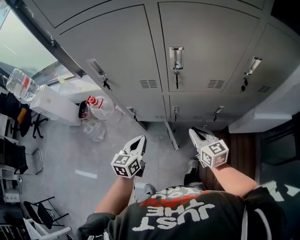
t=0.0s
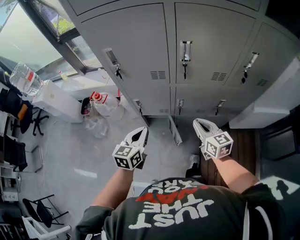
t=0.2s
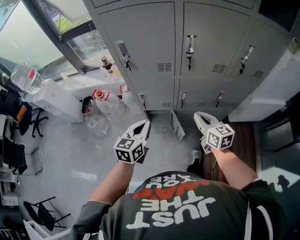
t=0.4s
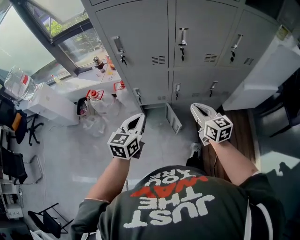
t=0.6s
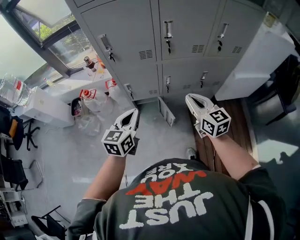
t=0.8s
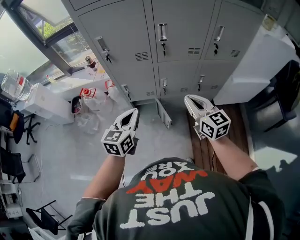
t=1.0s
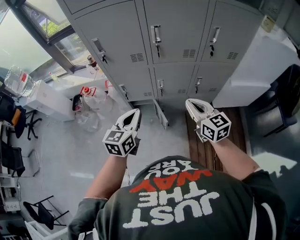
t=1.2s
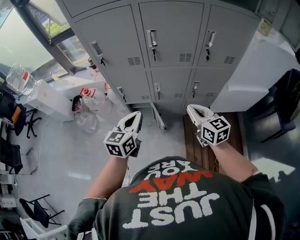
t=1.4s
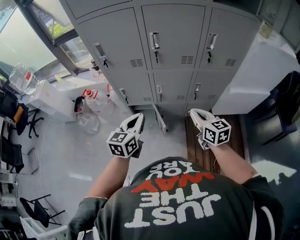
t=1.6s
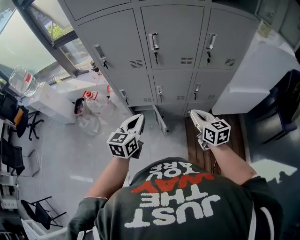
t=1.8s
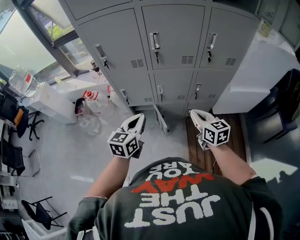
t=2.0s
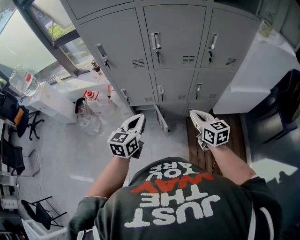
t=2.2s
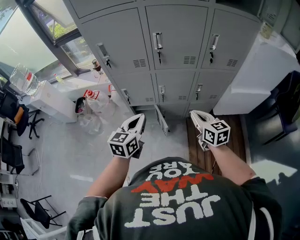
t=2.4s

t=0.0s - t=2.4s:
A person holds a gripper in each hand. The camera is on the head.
t=0.0s - t=1.2s: The right gripper travels backward and upward by roughly 20 cm, while the left gripper heads upward and backward, covering approximately 20 cm.
t=1.2s - t=2.4s: The right gripper moves downward, about 5 cm.

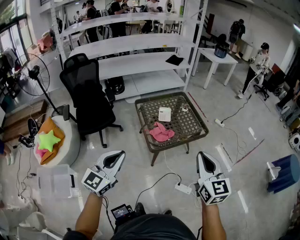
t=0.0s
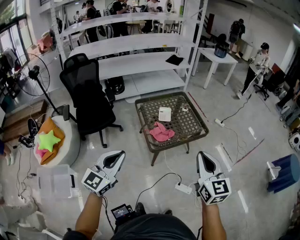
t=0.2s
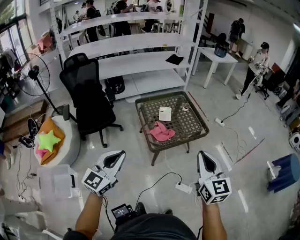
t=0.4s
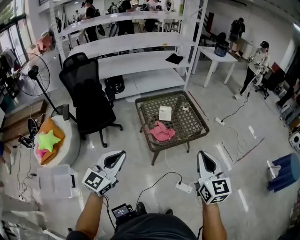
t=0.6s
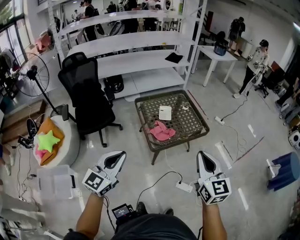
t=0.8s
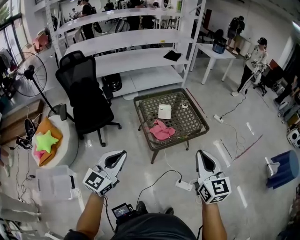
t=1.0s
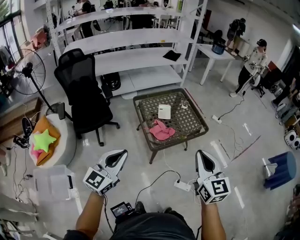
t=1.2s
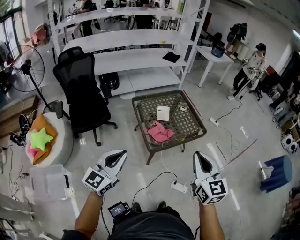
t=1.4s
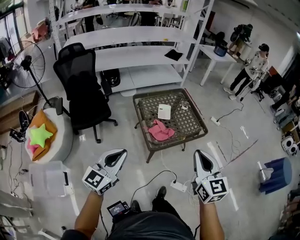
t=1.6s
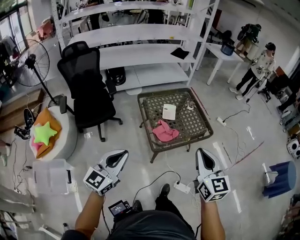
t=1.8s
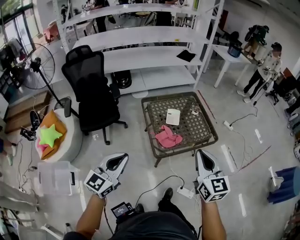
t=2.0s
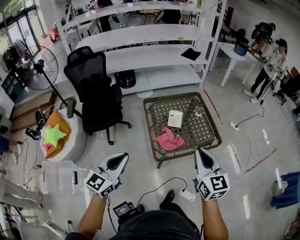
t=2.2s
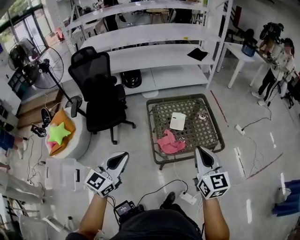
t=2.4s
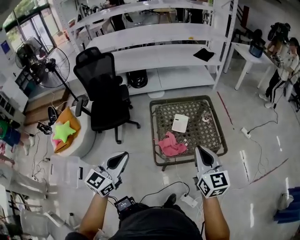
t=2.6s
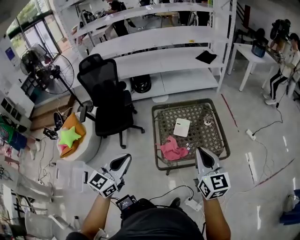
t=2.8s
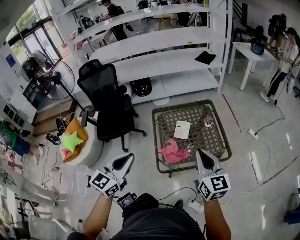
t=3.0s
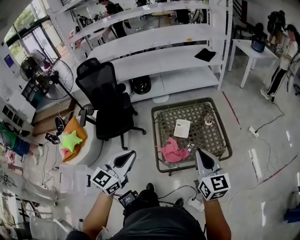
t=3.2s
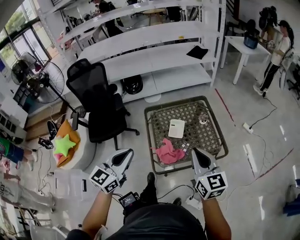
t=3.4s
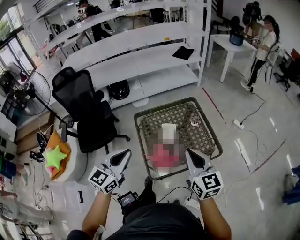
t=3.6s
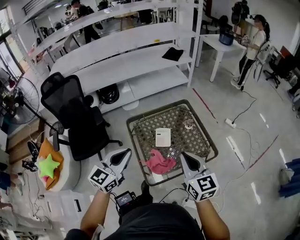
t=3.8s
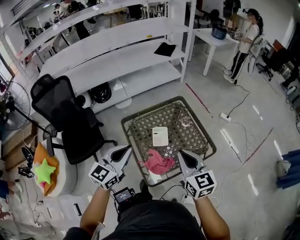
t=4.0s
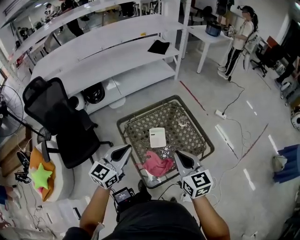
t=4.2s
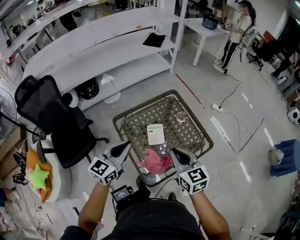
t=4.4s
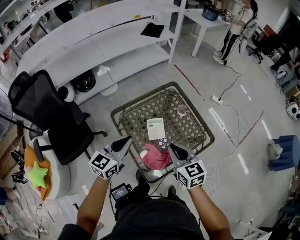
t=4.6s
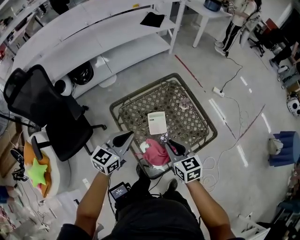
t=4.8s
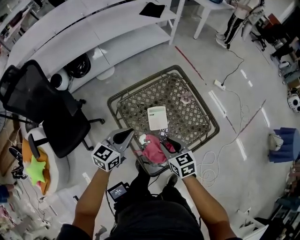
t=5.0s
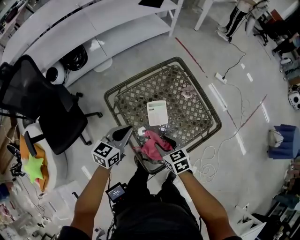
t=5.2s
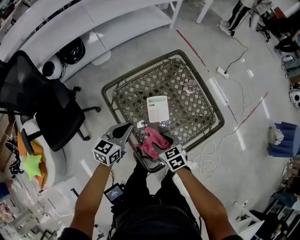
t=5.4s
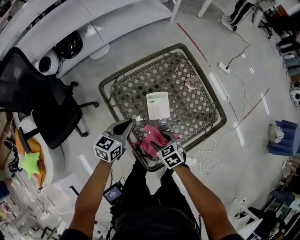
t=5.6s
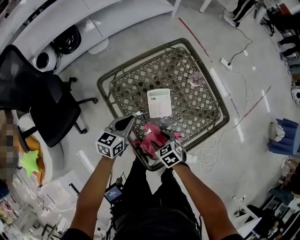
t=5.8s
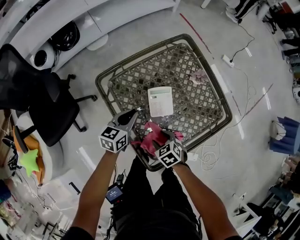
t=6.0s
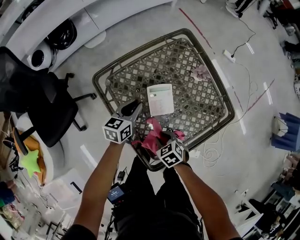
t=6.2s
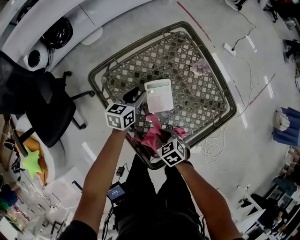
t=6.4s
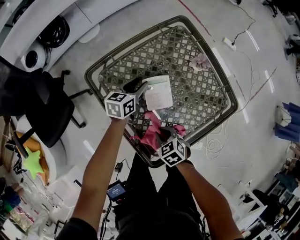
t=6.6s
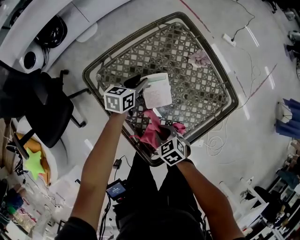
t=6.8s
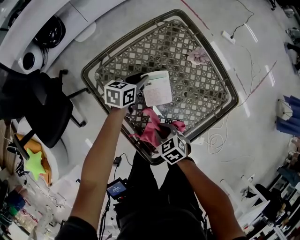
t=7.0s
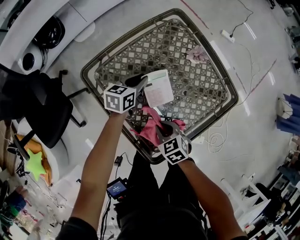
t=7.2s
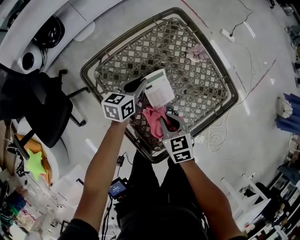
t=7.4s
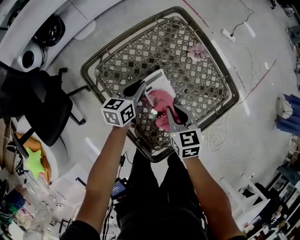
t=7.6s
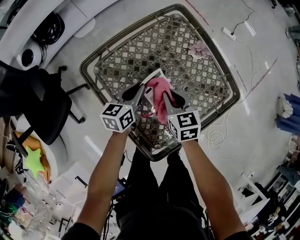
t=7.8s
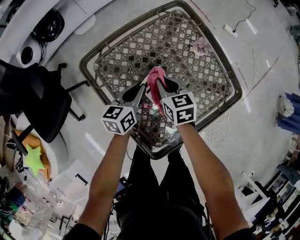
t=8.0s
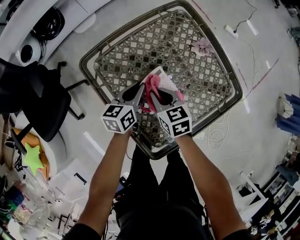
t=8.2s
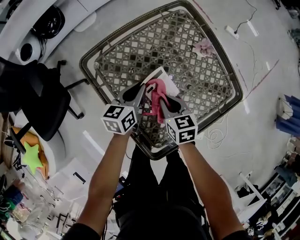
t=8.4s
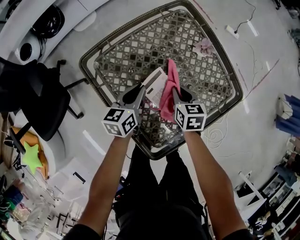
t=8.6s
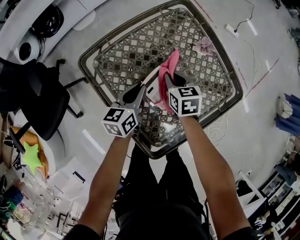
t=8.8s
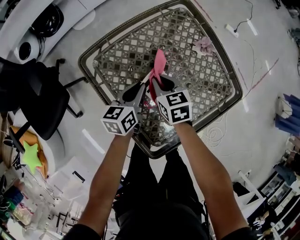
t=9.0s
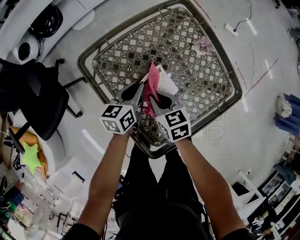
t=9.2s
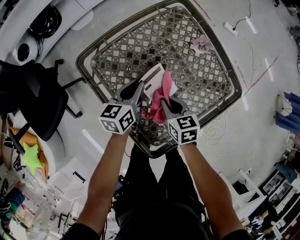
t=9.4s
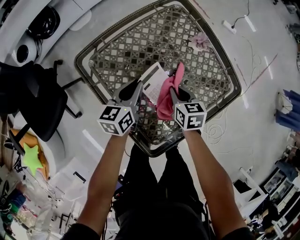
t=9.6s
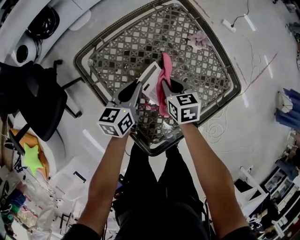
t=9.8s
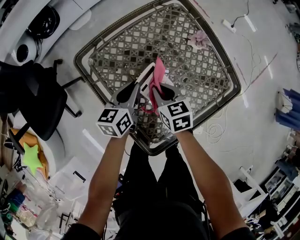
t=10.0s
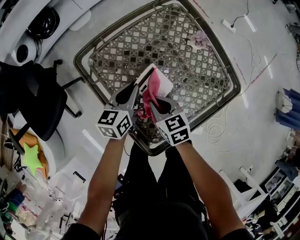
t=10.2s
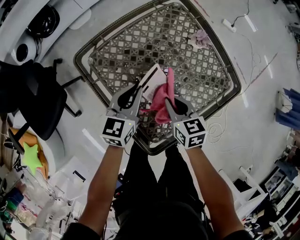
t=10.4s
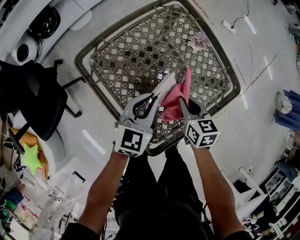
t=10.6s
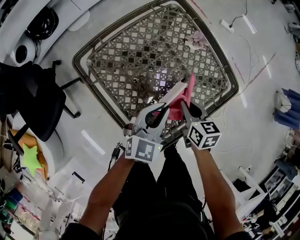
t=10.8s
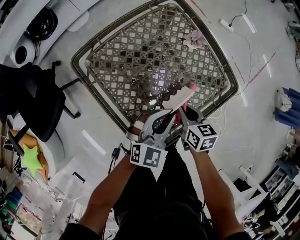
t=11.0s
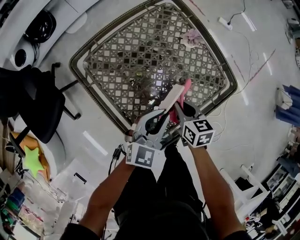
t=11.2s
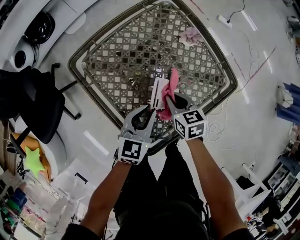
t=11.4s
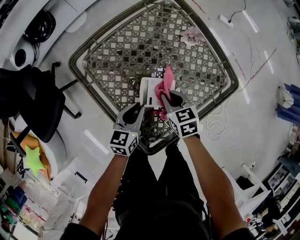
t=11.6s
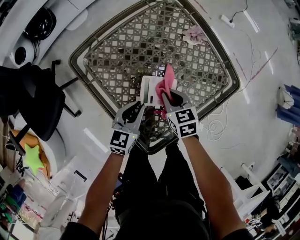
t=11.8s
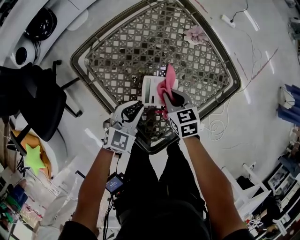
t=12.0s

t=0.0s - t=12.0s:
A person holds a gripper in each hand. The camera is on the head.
t=0.0s - t=1.6s: The left gripper shifts by some 5 cm. The right gripper is displaced to the left by some 5 cm.
t=1.6s - t=3.0s: The grippers both shift forward and to the right by some 25 cm. The right gripper rotates some 20 degrees.
t=3.0s - t=4.4s: The right gripper travels forward, to the left and downward by about 20 cm; the left gripper shifts about 30 cm forward and downward, and swivels roughly 30 degrees.
t=4.4s - t=6.0s: Both grippers travel together downward, about 35 cm. The left gripper rotates roughly 30 degrees. Meanwhile the right gripper tips its fingers downward by approximately 40 degrees, and opens up.
t=6.0s - t=7.6s: The right gripper travels forward, upward and to the right by approximately 15 cm, turns by approximately 40 degrees, and closes; the left gripper heads to the right and forward, covering approximately 10 cm, and opens and closes again.
t=7.6s - t=9.0s: The right gripper moves forward and backward over approximately 10 cm, changing direction 2 times.
t=9.0s - t=10.4s: The right gripper swings left and right, approximately 10 cm each way, with 2 reversals. The left gripper goes some 5 cm upward, and swivels some 20 degrees.
t=10.4s - t=12.0s: The left gripper goes roughly 10 cm backward, moves about 15 cm to the right and comes back, and rotates some 30 degrees.

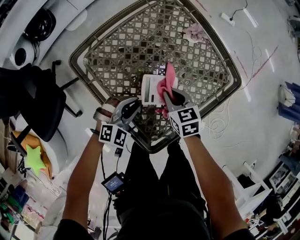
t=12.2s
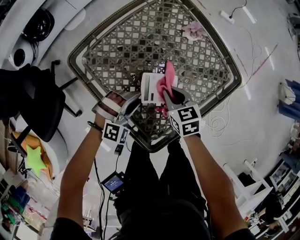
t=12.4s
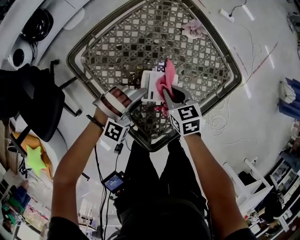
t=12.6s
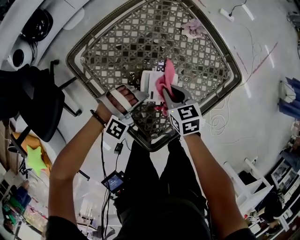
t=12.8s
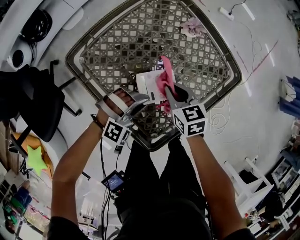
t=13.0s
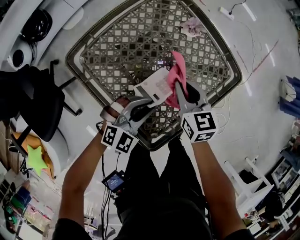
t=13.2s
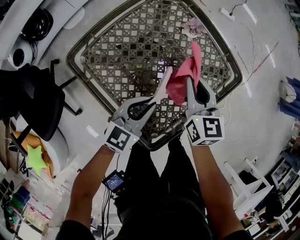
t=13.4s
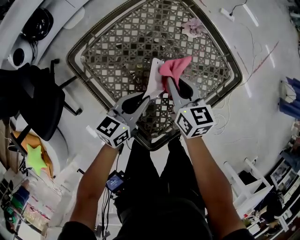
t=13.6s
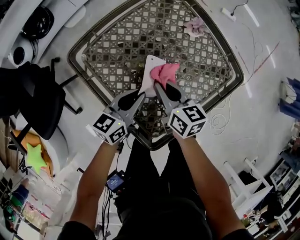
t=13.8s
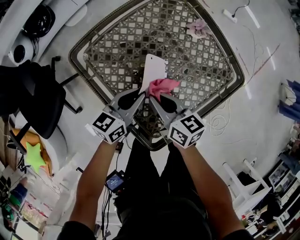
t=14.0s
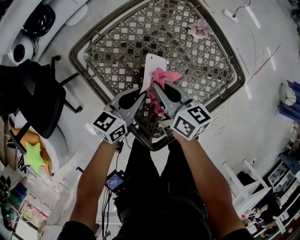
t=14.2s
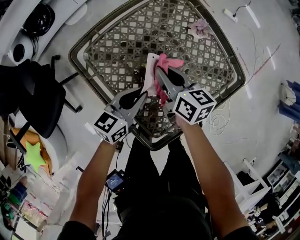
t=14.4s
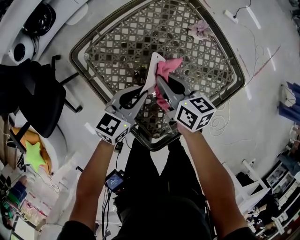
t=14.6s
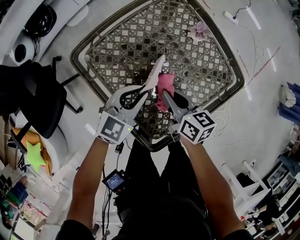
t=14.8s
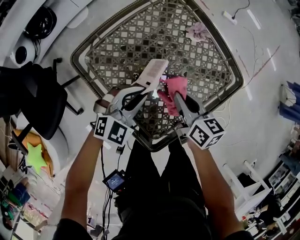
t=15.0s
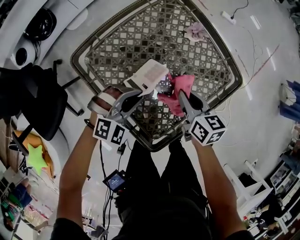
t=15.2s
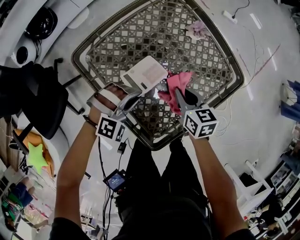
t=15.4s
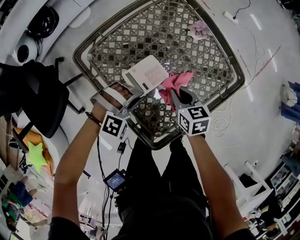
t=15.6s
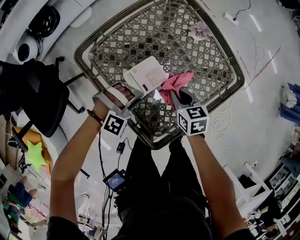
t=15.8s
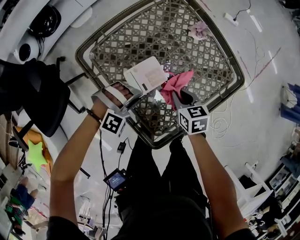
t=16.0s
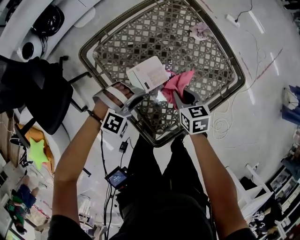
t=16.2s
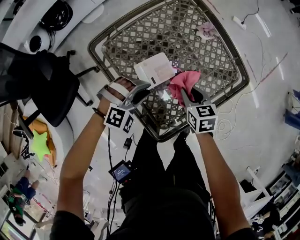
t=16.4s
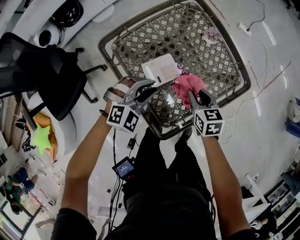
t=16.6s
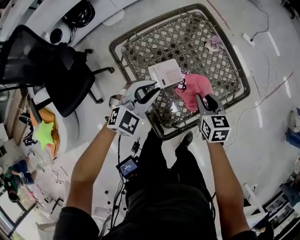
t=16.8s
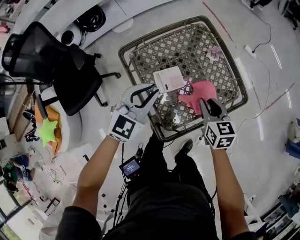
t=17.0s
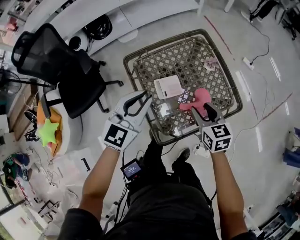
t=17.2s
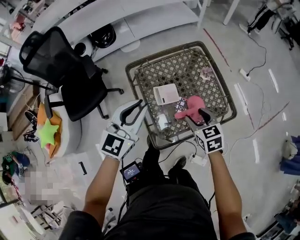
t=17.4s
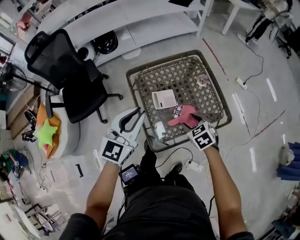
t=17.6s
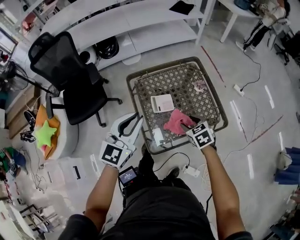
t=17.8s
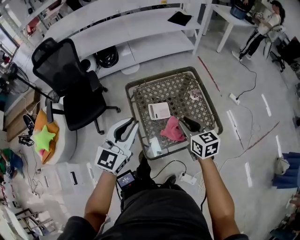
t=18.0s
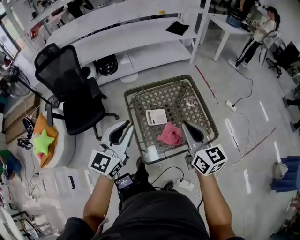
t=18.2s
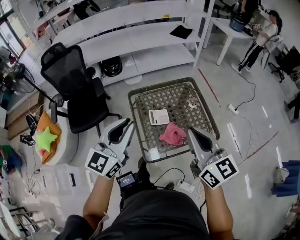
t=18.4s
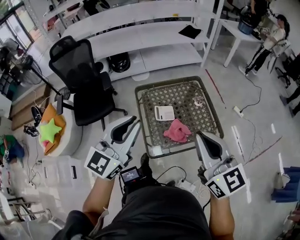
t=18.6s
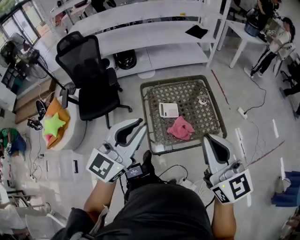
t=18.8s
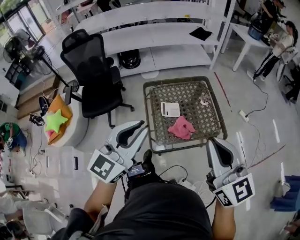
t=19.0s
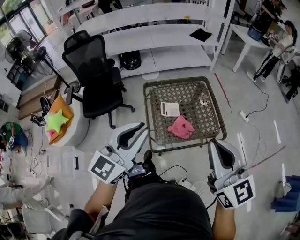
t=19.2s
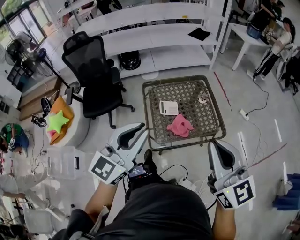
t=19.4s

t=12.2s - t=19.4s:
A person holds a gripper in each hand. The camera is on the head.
t=12.2s - t=13.6s: Both grippers travel together upward, some 5 cm. The left gripper rotates around the line of its fingers by roughly 60 degrees, counterclockwise from behind, and opens, then closes once more, while the right gripper turns by roughly 20 degrees.
t=13.6s - t=15.0s: The right gripper moves forward and backward over about 10 cm, changing direction 2 times. Meanwhile the left gripper rolls clockwise, seen from behind, by roughly 50 degrees.
t=15.0s - t=16.6s: The left gripper moves some 10 cm downward and comes back. Meanwhile the right gripper goes downward and returns, about 10 cm each way, and rotates about 30 degrees.
t=16.6s - t=18.0s: The two grippers go some 30 cm upward. The right gripper rotates about 30 degrees, and opens and closes again; the left gripper angles its fingers upward, by about 30 degrees.
t=18.0s - t=19.4s: The left gripper is displaced backward and upward by about 20 cm. The right gripper heads upward and backward, covering approximately 35 cm, rotates some 30 degrees, and closes up.

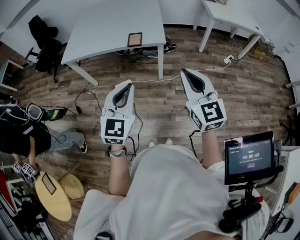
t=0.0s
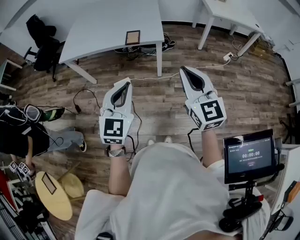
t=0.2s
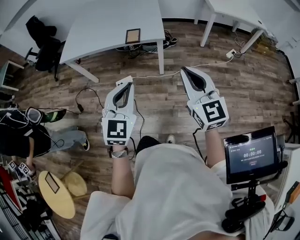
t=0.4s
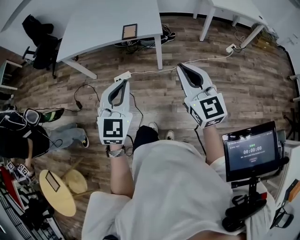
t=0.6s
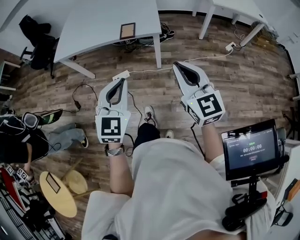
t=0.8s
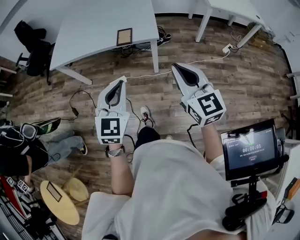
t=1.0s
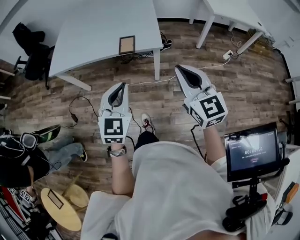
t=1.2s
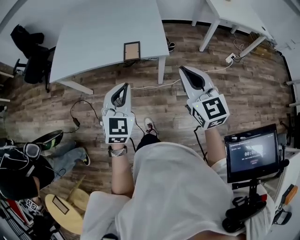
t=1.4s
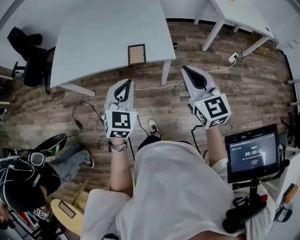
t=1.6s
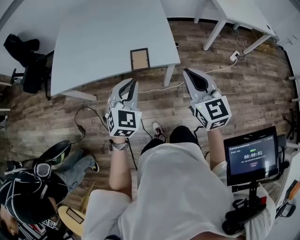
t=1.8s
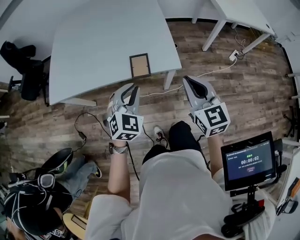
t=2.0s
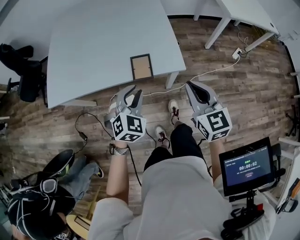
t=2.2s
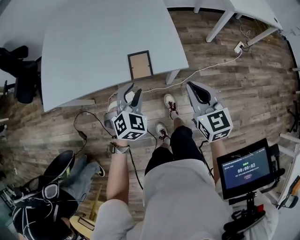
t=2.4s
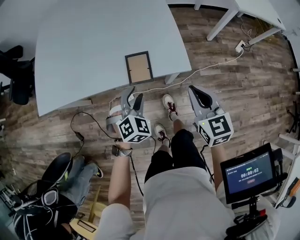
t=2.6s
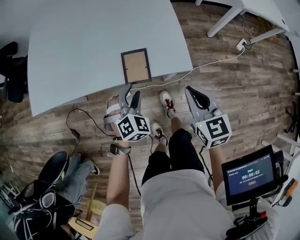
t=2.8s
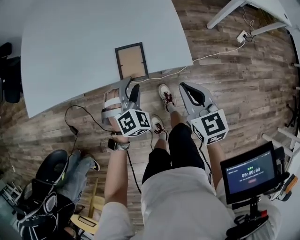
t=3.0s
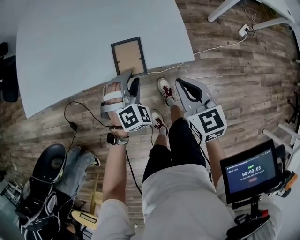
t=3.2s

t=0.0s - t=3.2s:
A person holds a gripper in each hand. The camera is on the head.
t=0.0s - t=1.6s: Both grippers travel together forward, approximately 30 cm.
t=1.6s - t=3.2s: The grippers both shift downward and forward by some 35 cm. The right gripper rotates approximately 20 degrees. Meanwhile the left gripper turns by roughly 40 degrees, and opens its fingers.
